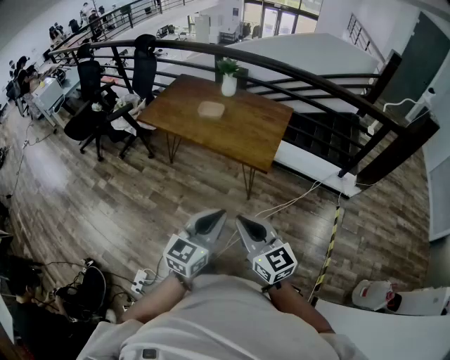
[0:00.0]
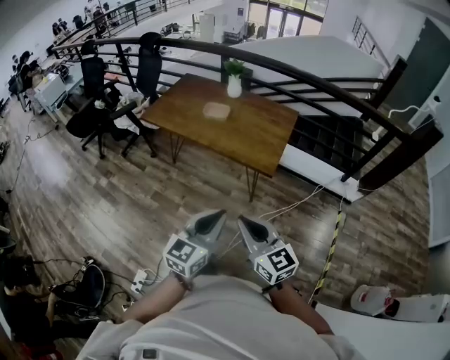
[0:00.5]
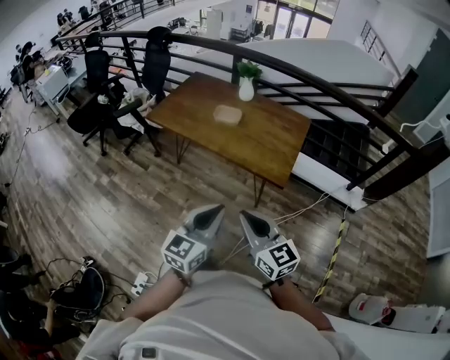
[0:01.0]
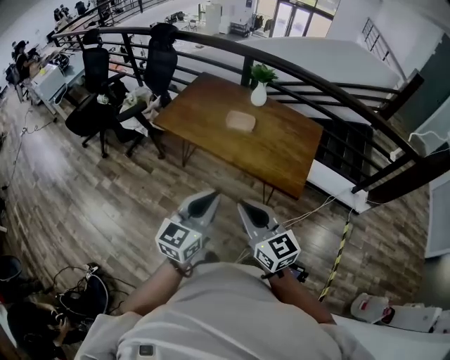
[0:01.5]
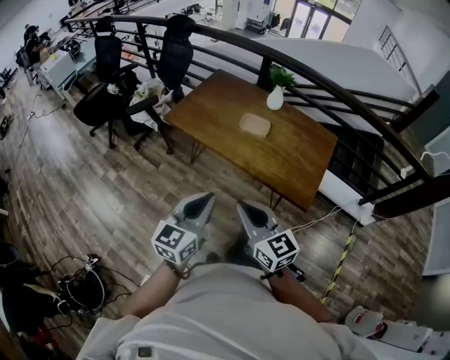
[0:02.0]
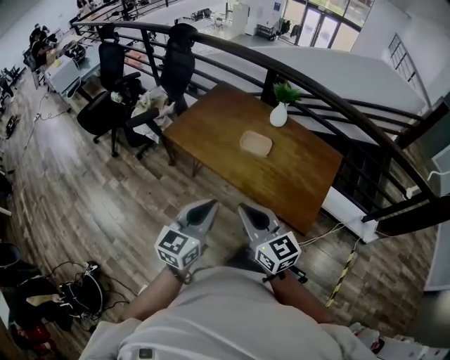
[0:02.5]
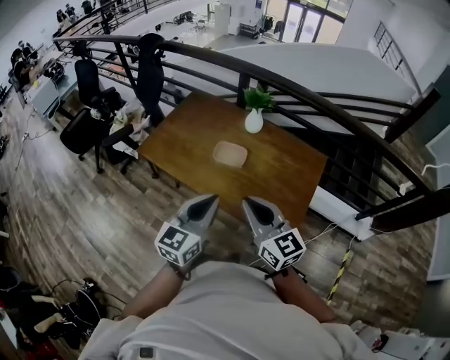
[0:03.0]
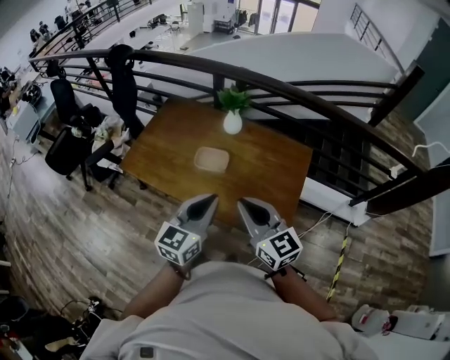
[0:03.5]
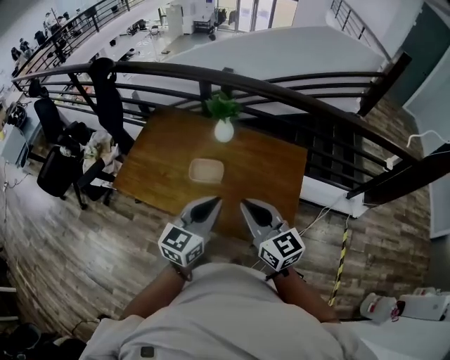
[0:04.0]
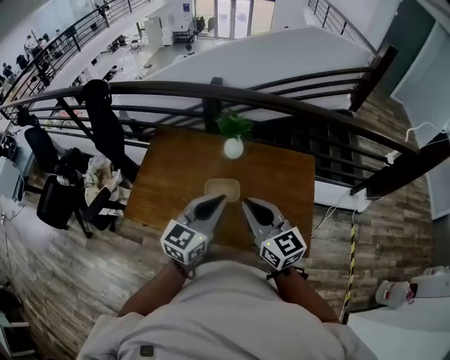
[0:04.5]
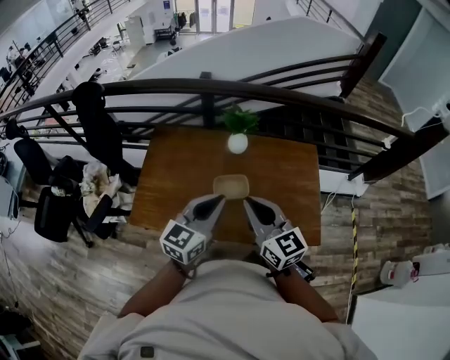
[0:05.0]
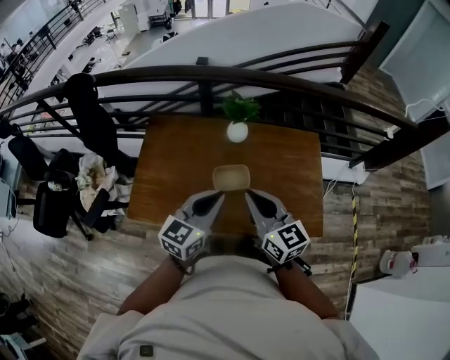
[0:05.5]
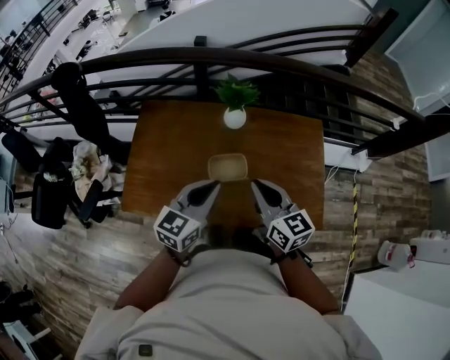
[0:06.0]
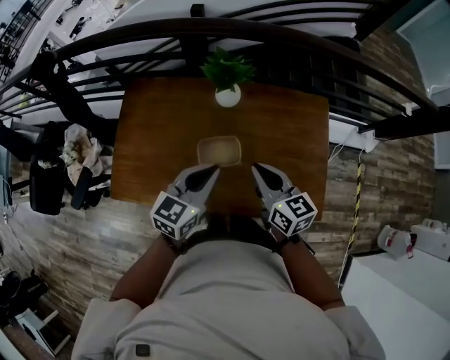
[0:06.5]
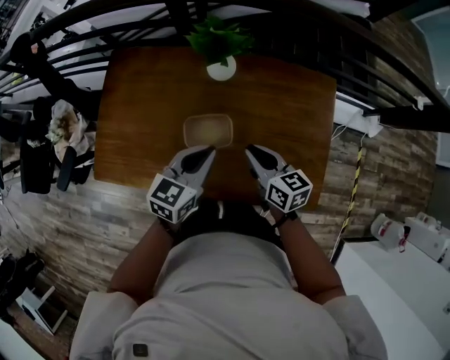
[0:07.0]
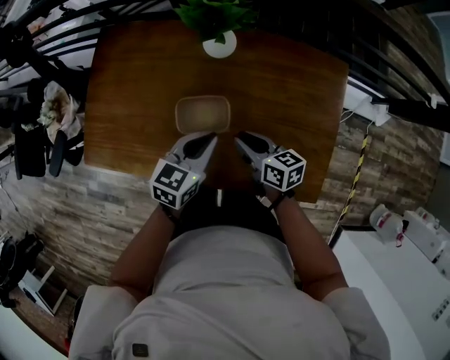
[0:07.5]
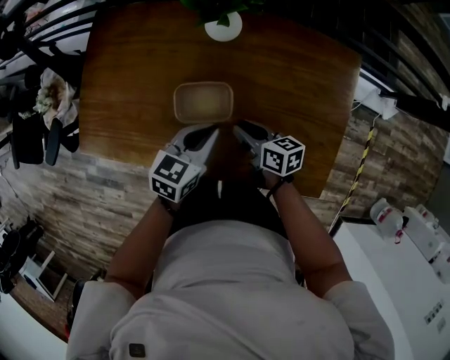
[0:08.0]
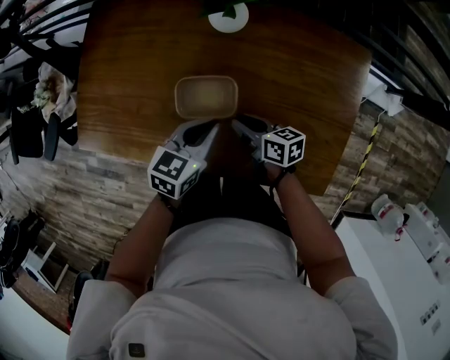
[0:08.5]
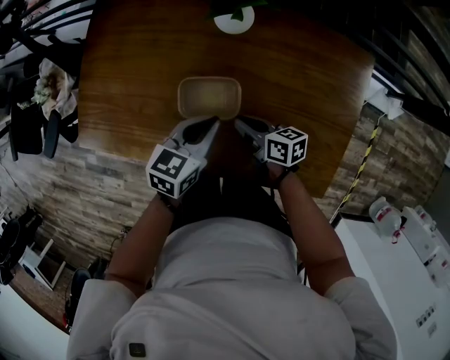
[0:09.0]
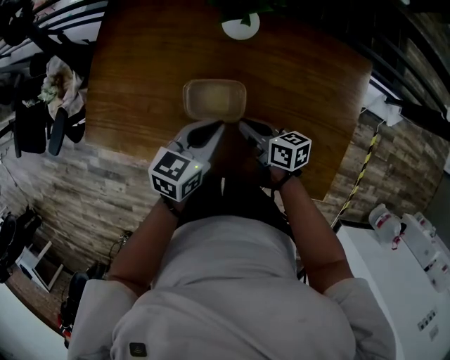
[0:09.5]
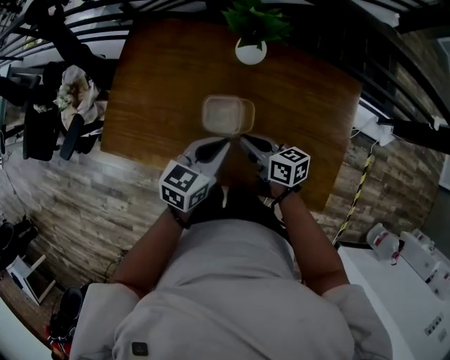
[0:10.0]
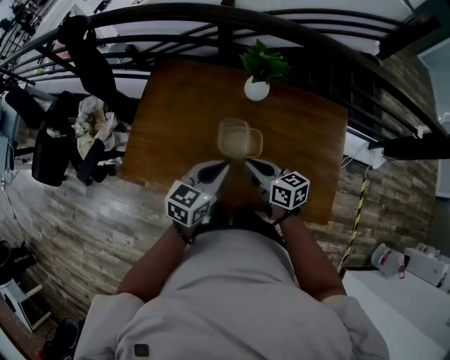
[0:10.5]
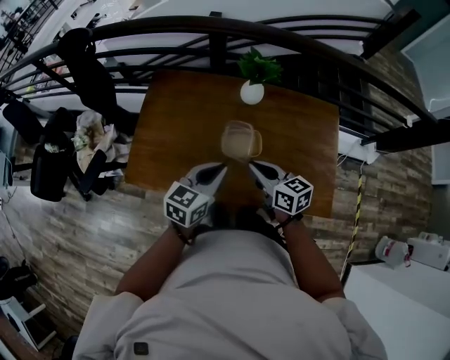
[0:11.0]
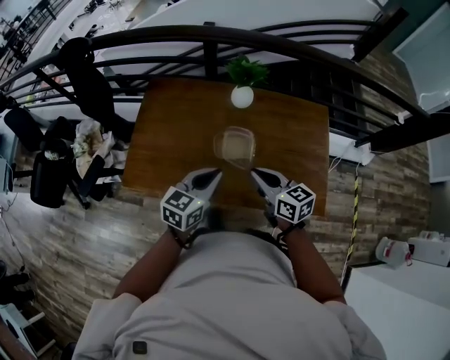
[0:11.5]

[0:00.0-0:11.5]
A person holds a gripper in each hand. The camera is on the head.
0:00.0 to 0:02.0: Both grippers travel together forward and to the left, roughly 40 cm.
0:02.0 to 0:04.0: Both grippers travel together forward and to the right, roughly 40 cm.
0:04.0 to 0:06.0: The left gripper shifts some 25 cm to the left and forward. Meanwhile the right gripper heads to the left, forward and downward, covering some 20 cm, and changes its angle by approximately 20 degrees.
0:06.0 to 0:07.5: The right gripper shifts roughly 30 cm downward, and changes its angle by about 30 degrees; the left gripper moves downward, forward and to the right, some 25 cm.
0:07.5 to 0:09.5: The right gripper moves downward, roughly 5 cm.
0:09.5 to 0:11.5: The right gripper heads upward and backward, covering approximately 30 cm, and turns by approximately 30 degrees. Meanwhile the left gripper shifts about 25 cm upward, backward and to the left.

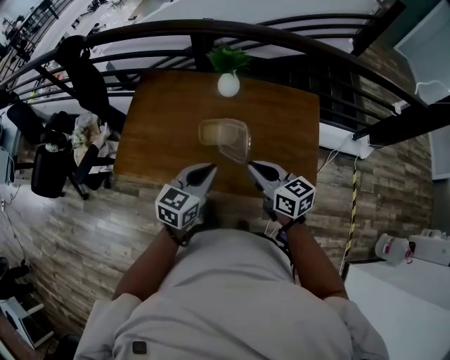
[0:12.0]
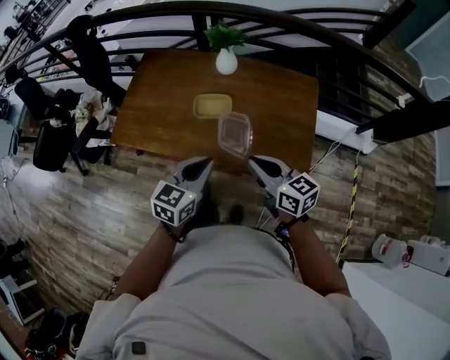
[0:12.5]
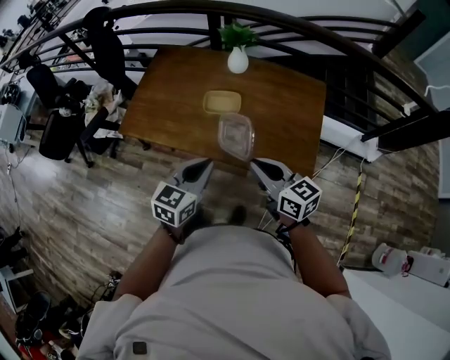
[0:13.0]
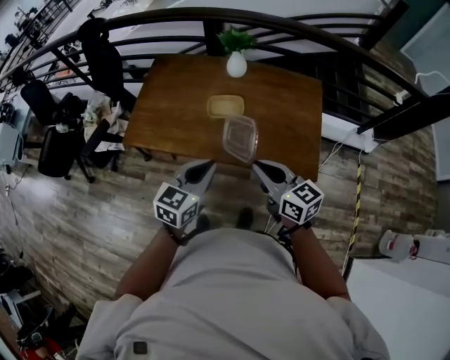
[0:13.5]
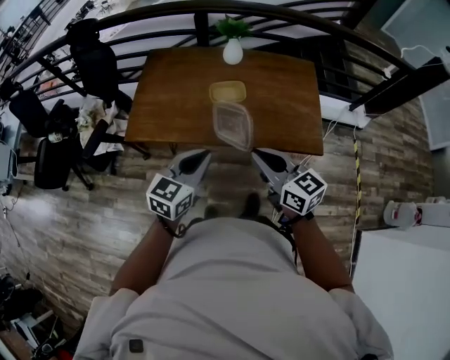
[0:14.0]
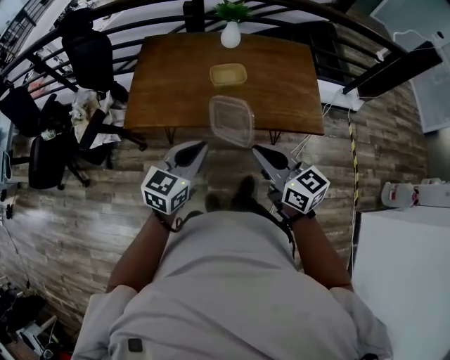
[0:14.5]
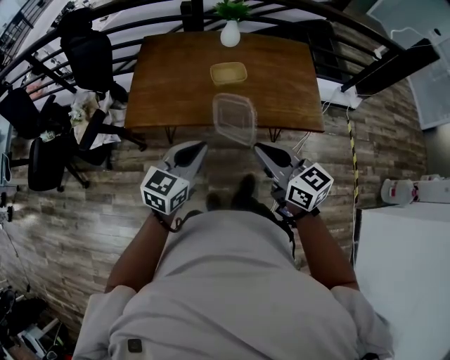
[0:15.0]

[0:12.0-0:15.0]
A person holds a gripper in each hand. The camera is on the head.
0:12.0 to 0:13.5: The grippers both shift backward by about 15 cm.
0:13.5 to 0:15.0: The grippers both shift to the left and backward by about 20 cm.

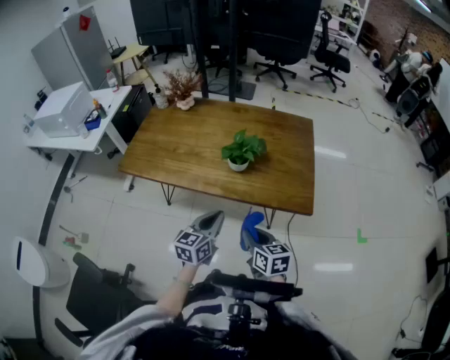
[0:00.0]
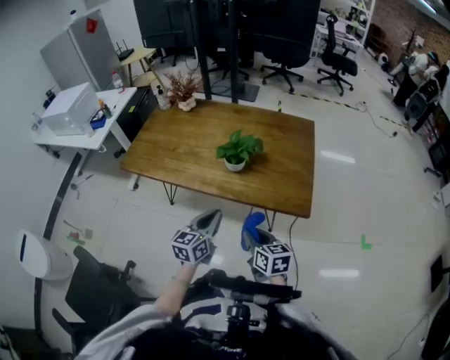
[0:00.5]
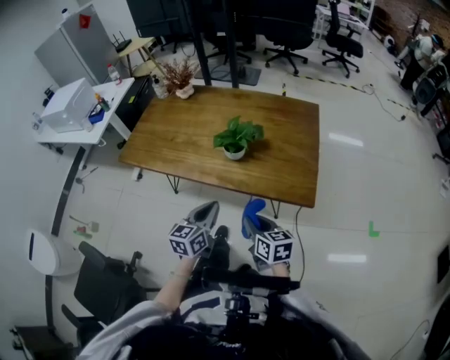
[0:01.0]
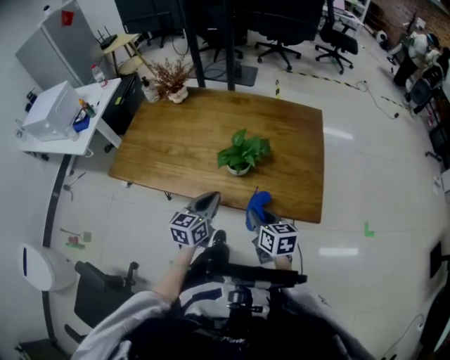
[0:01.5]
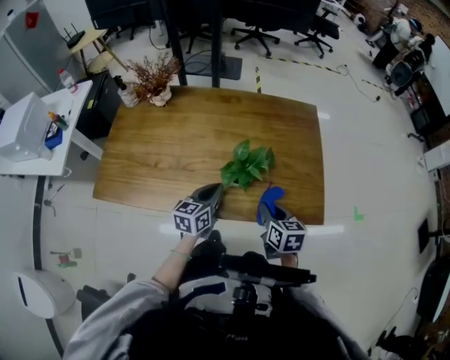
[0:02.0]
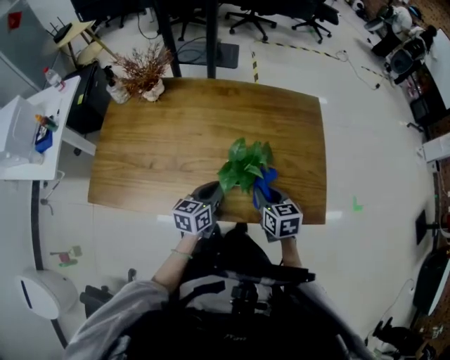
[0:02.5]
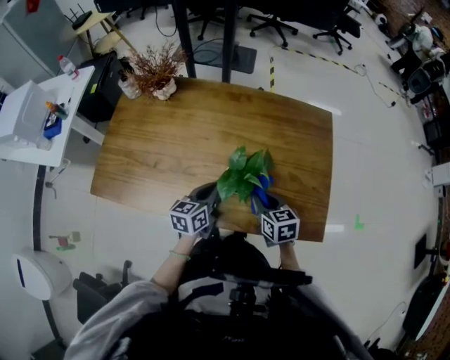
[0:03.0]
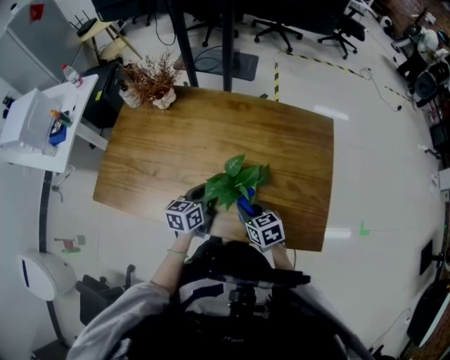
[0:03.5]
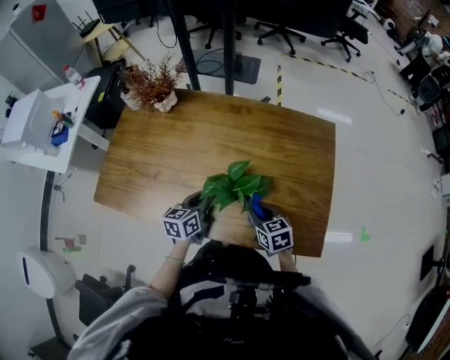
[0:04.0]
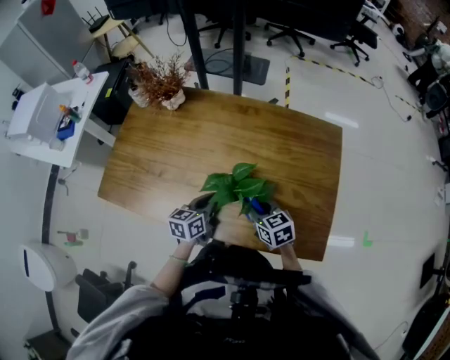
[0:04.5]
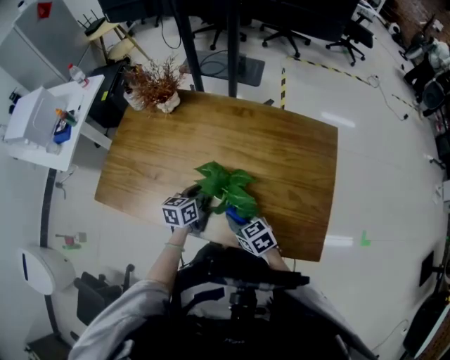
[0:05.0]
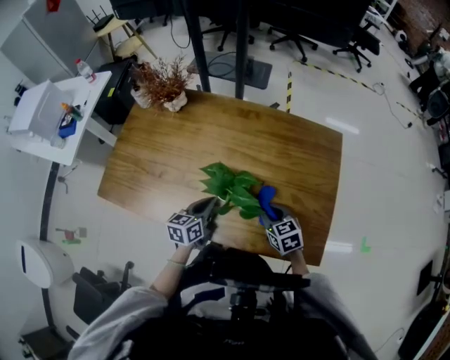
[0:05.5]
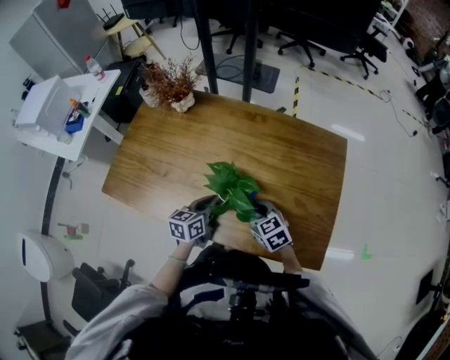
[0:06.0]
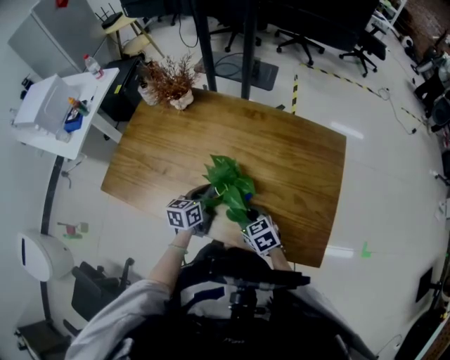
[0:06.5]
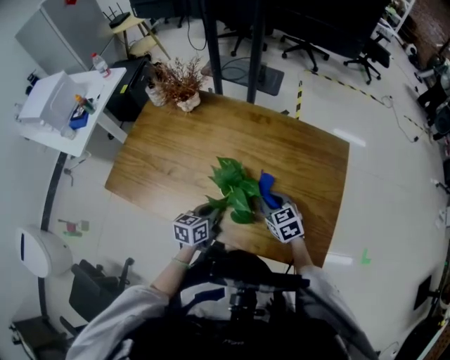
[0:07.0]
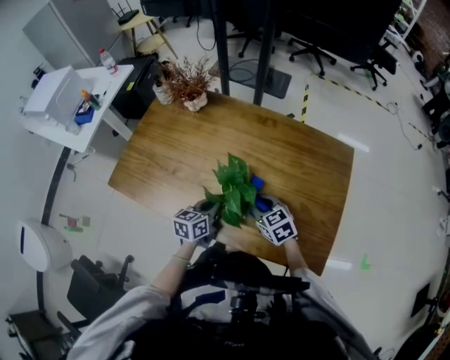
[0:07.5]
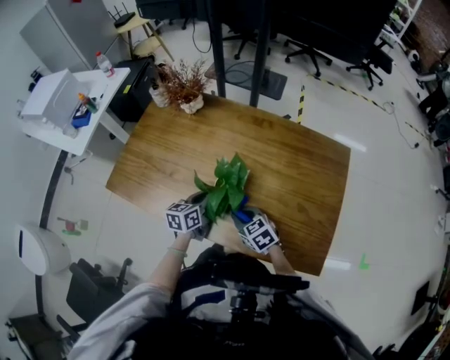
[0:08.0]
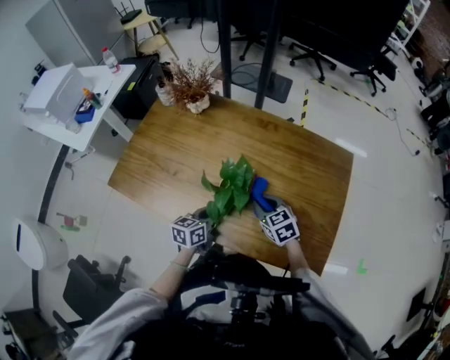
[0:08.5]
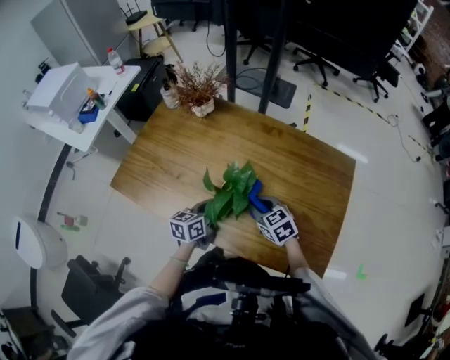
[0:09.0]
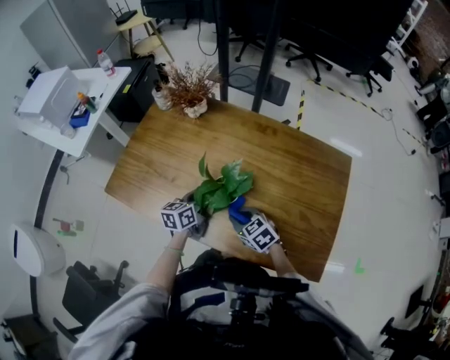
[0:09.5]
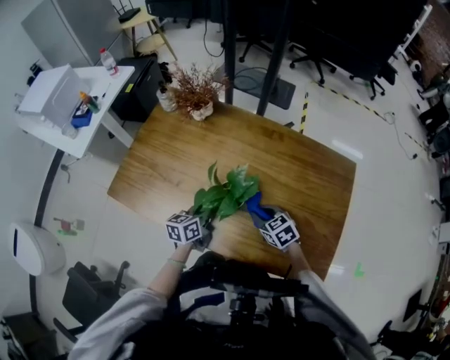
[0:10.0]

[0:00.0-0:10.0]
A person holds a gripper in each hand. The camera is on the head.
0:00.0 to 0:02.0: The two grippers go about 20 cm forward.
0:02.0 to 0:04.0: The left gripper goes roughly 5 cm forward. Meanwhile the right gripper heads forward and downward, covering about 10 cm, and rotates roughly 30 degrees.
0:04.0 to 0:06.0: The right gripper goes left and right, some 10 cm each way, reversing 2 times, and turns by about 20 degrees.
0:06.0 to 0:08.0: The right gripper is displaced to the left by some 5 cm.
0:08.0 to 0:10.0: The left gripper reaches roughly 5 cm backward, then returns, while the right gripper moves left and right over about 10 cm, changing direction 2 times.

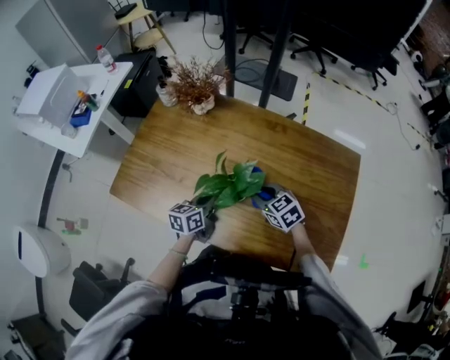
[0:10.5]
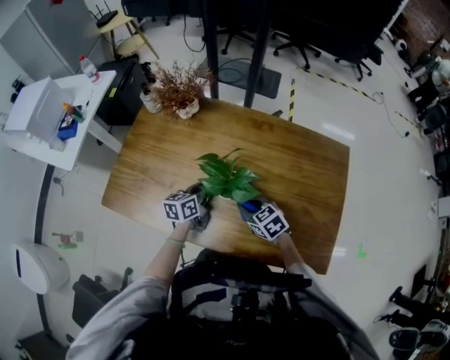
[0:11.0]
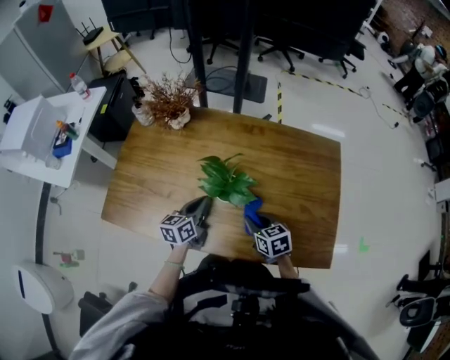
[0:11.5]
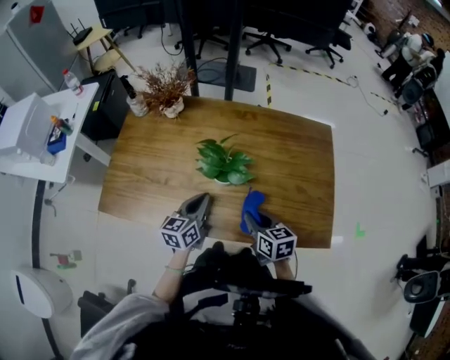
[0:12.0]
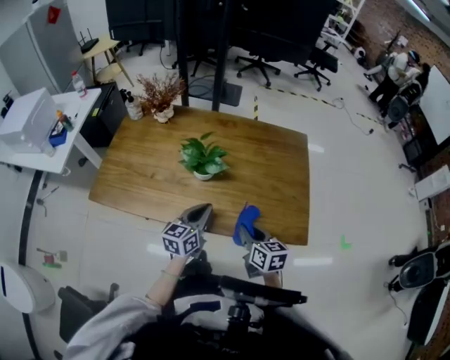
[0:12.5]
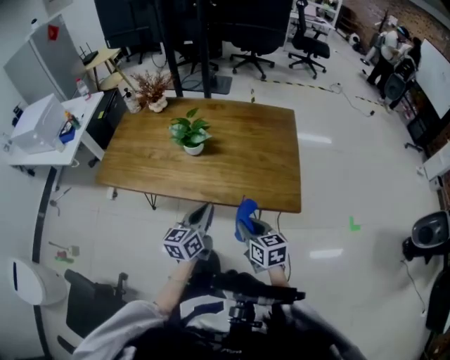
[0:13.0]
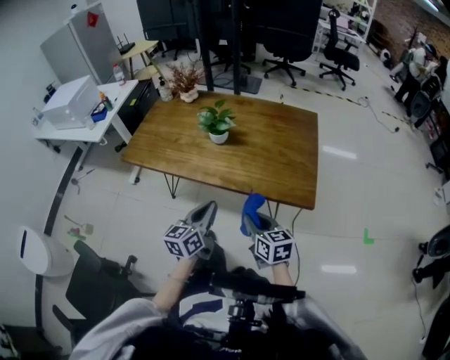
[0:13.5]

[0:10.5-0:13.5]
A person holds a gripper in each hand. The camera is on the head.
0:10.5 to 0:12.0: The left gripper travels upward by roughly 5 cm. The right gripper is displaced backward by about 15 cm, and turns by some 40 degrees.
0:12.0 to 0:13.5: The two grippers go some 30 cm backward.
